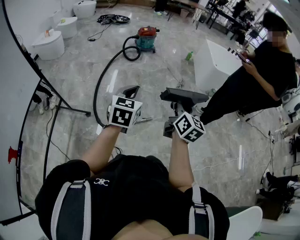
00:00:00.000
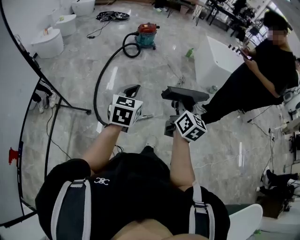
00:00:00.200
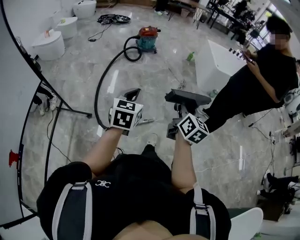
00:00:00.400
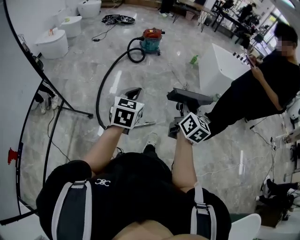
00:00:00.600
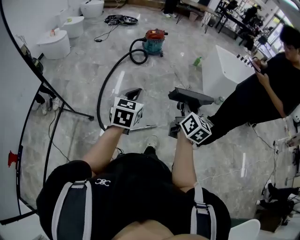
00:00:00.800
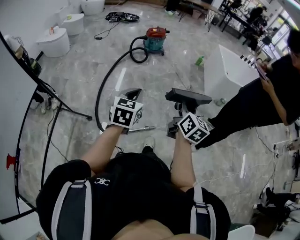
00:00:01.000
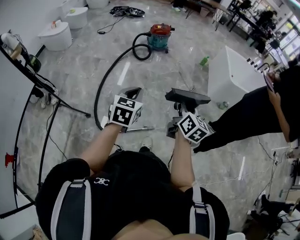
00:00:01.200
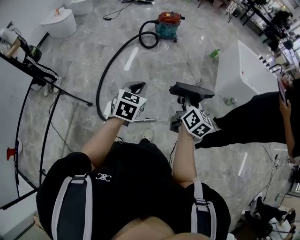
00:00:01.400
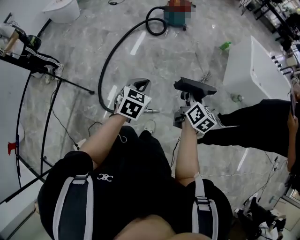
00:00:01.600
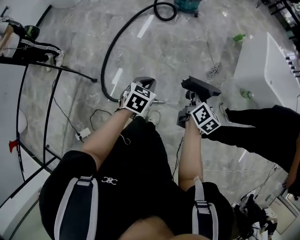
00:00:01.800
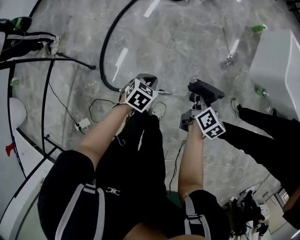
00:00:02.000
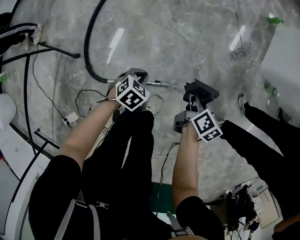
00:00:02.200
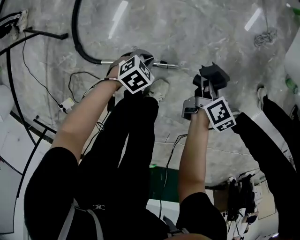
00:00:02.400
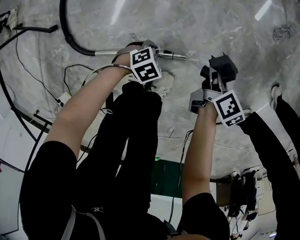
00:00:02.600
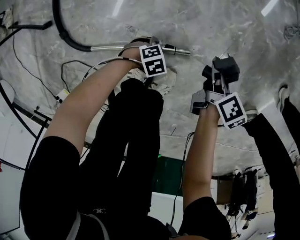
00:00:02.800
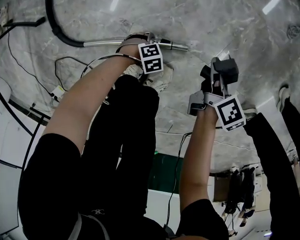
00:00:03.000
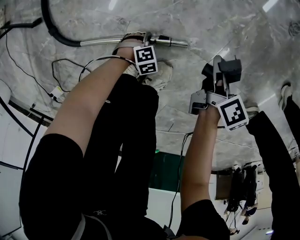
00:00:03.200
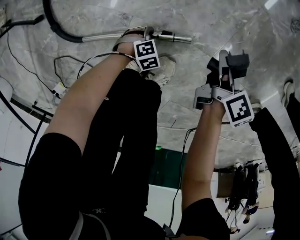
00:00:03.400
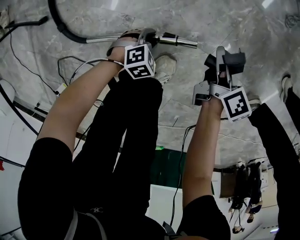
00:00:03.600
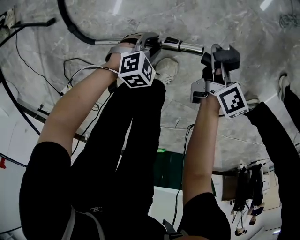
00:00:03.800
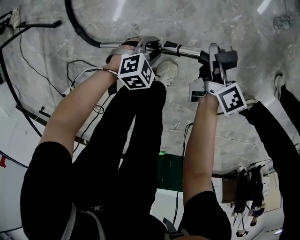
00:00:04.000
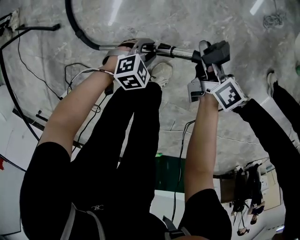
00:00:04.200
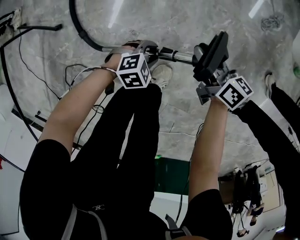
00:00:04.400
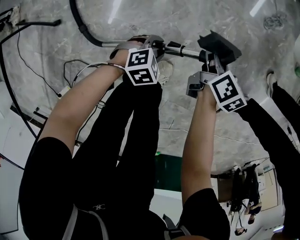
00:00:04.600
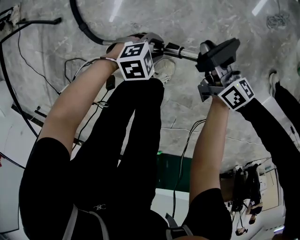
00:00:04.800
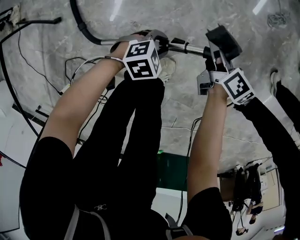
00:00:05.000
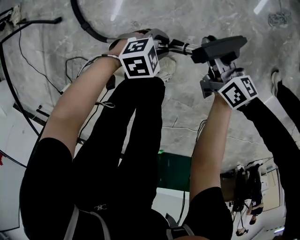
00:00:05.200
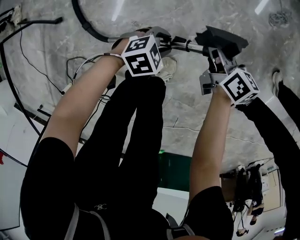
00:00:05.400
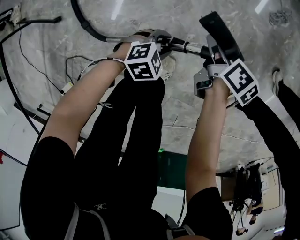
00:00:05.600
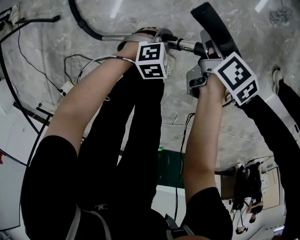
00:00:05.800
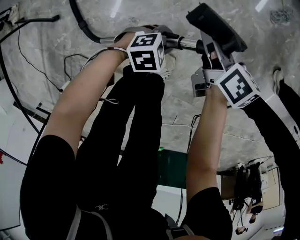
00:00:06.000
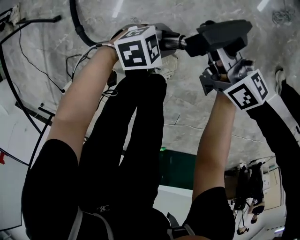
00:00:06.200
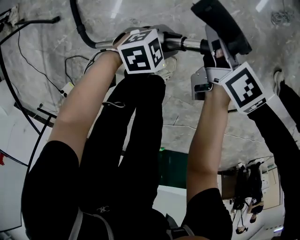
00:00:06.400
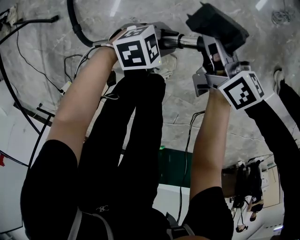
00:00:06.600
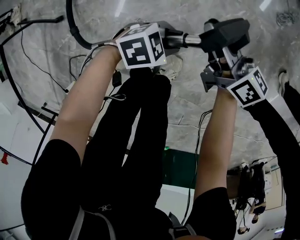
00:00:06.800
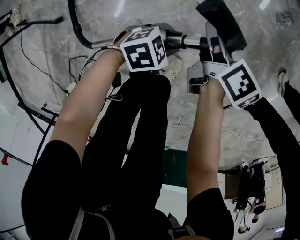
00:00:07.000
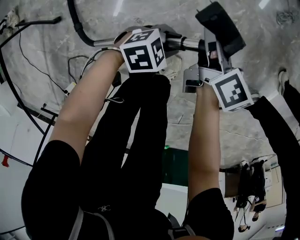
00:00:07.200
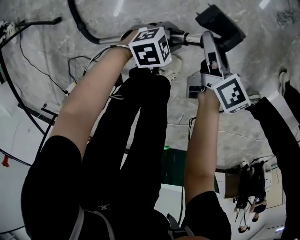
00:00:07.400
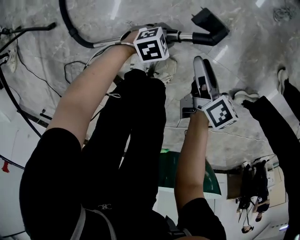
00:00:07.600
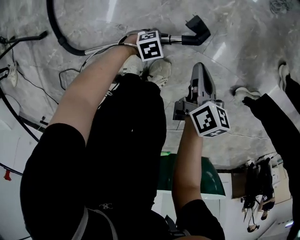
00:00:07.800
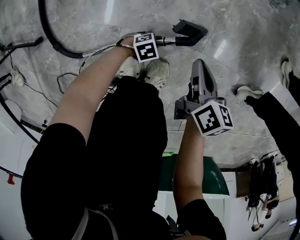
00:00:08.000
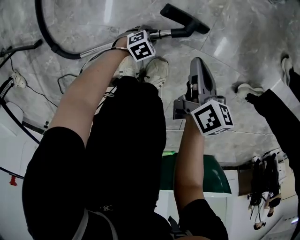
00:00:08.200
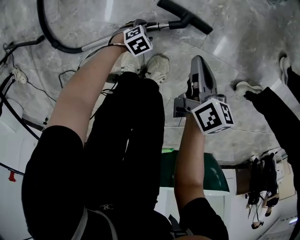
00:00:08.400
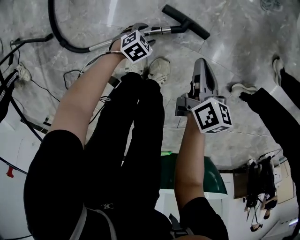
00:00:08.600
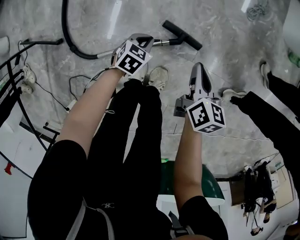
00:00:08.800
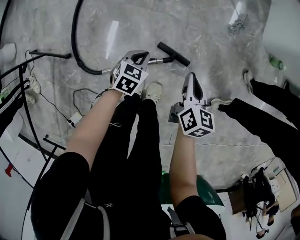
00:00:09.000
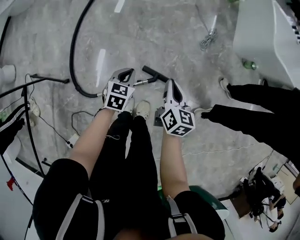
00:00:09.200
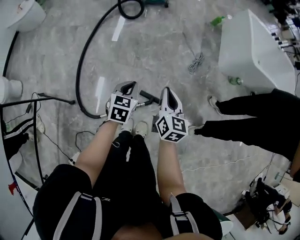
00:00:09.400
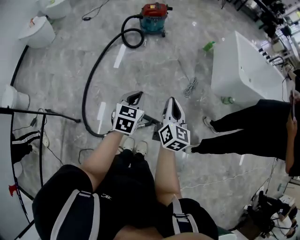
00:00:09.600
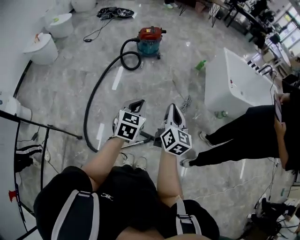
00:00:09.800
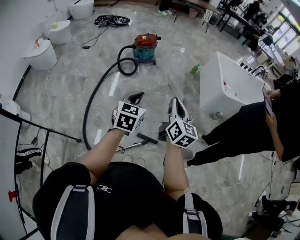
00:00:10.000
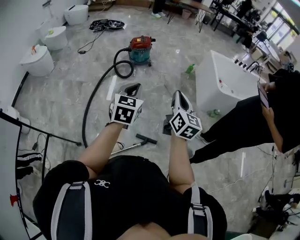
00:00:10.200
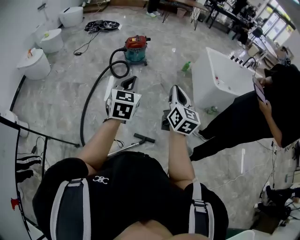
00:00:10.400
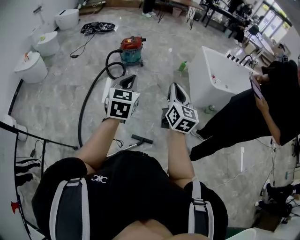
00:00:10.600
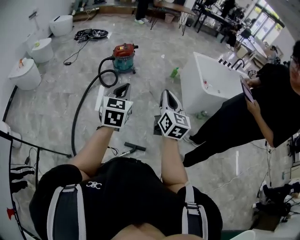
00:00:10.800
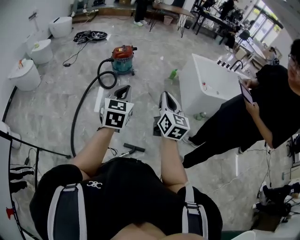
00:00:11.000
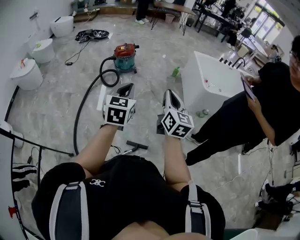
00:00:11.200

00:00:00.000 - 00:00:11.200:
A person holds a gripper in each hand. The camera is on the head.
00:00:00.000 - 00:00:01.600: The grippers both shift forward and downward by about 40 cm. The right gripper rotates approximately 20 degrees.
00:00:01.600 - 00:00:03.200: The grippers both shift downward by roughly 90 cm. The right gripper turns by about 40 degrees. Meanwhile the left gripper points its fingers roughly 50 degrees further downward, and opens up.
00:00:03.200 - 00:00:04.800: The right gripper heads upward, covering approximately 15 cm, and swivels about 40 degrees. The left gripper shifts approximately 30 cm upward, and changes its angle by roughly 30 degrees.
00:00:04.800 - 00:00:06.400: The left gripper moves roughly 5 cm. The right gripper goes up and down, some 10 cm each way, reversing 2 times, and rotates approximately 30 degrees.
00:00:06.400 - 00:00:08.000: The left gripper is displaced downward by approximately 25 cm, and rotates some 20 degrees; the right gripper ends up some 20 cm from where it was, and closes up.
00:00:08.000 - 00:00:09.600: The grippers both shift upward by roughly 80 cm. The right gripper swivels approximately 40 degrees; the left gripper changes its angle by about 70 degrees, and closes its fingers.
00:00:09.600 - 00:00:11.200: The right gripper heads upward and to the right, covering roughly 25 cm. Meanwhile the left gripper shifts about 25 cm upward.

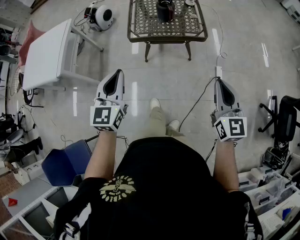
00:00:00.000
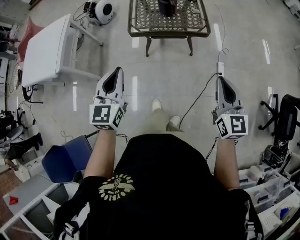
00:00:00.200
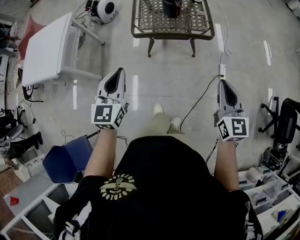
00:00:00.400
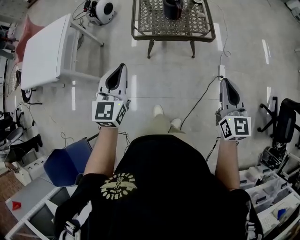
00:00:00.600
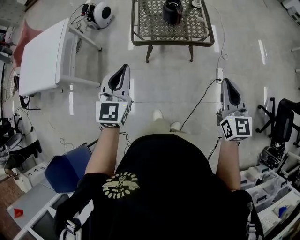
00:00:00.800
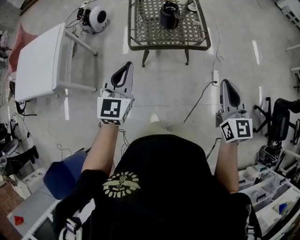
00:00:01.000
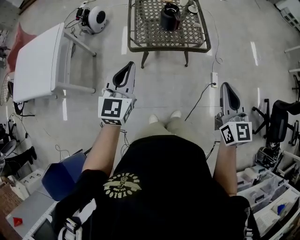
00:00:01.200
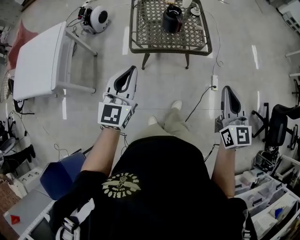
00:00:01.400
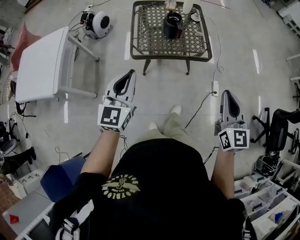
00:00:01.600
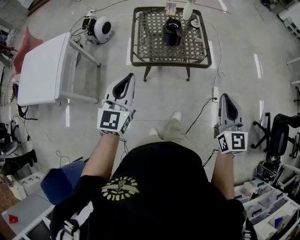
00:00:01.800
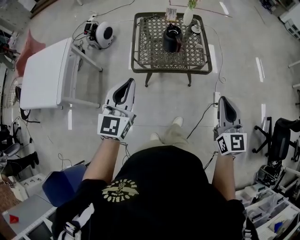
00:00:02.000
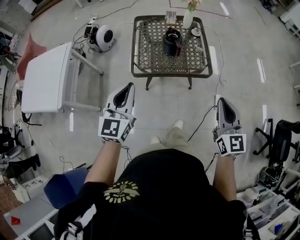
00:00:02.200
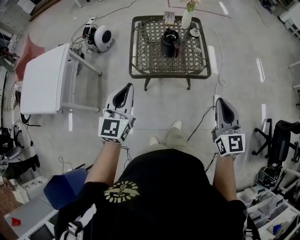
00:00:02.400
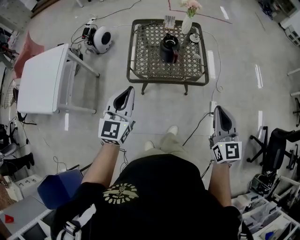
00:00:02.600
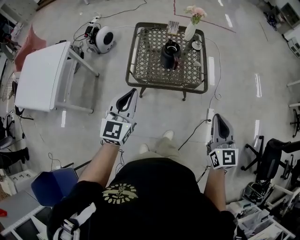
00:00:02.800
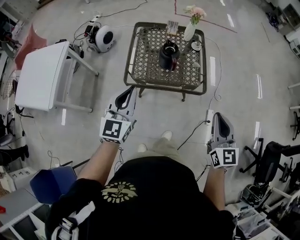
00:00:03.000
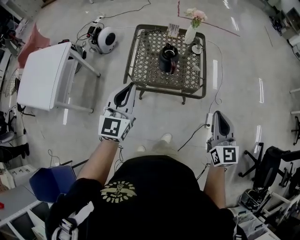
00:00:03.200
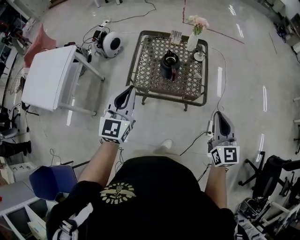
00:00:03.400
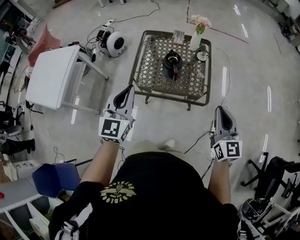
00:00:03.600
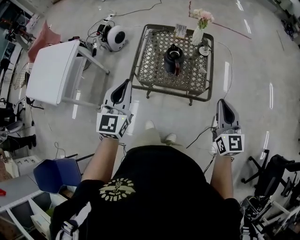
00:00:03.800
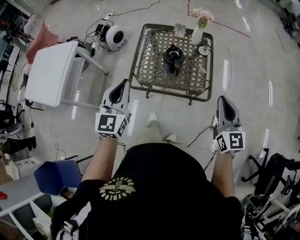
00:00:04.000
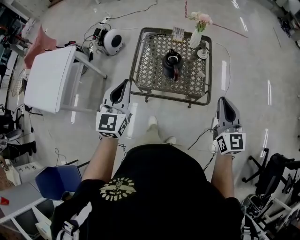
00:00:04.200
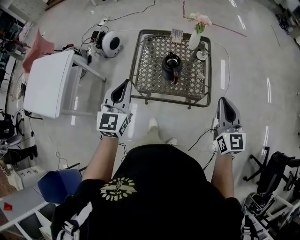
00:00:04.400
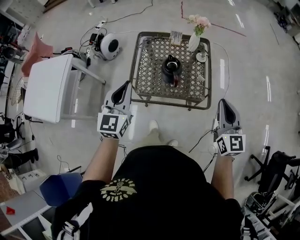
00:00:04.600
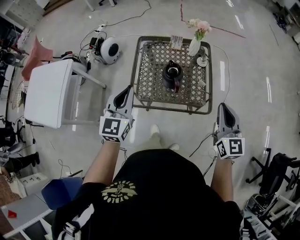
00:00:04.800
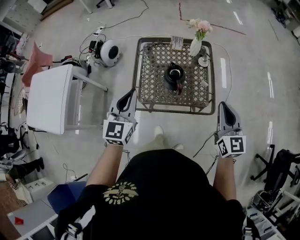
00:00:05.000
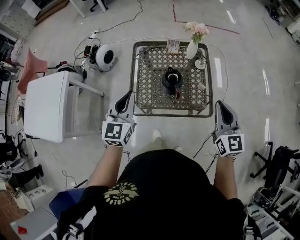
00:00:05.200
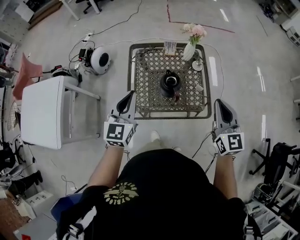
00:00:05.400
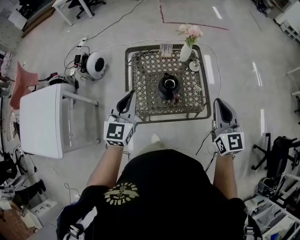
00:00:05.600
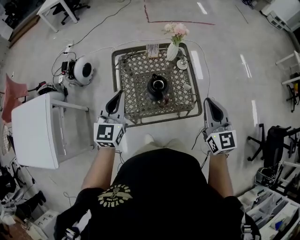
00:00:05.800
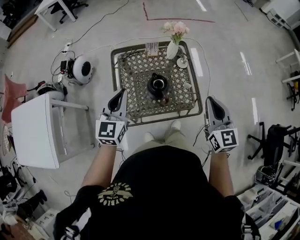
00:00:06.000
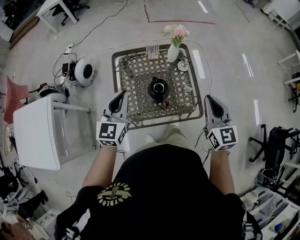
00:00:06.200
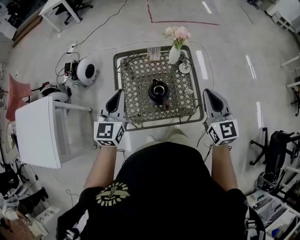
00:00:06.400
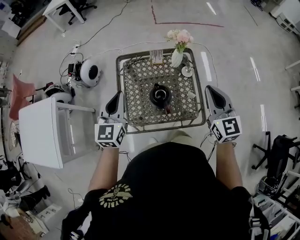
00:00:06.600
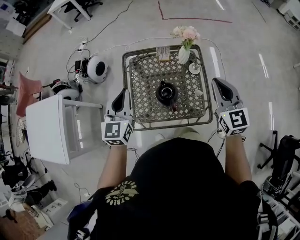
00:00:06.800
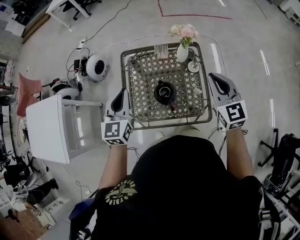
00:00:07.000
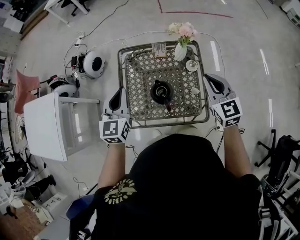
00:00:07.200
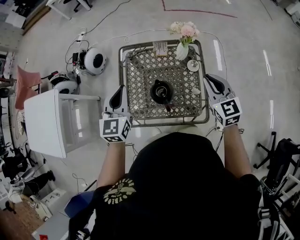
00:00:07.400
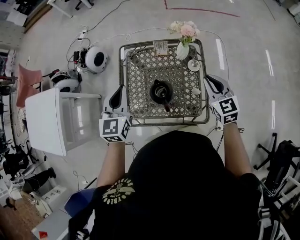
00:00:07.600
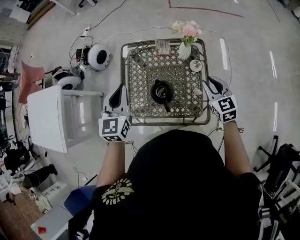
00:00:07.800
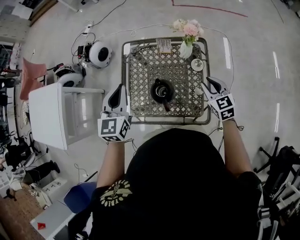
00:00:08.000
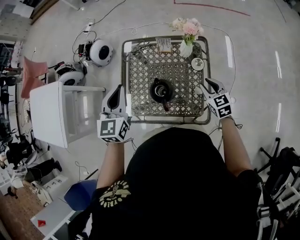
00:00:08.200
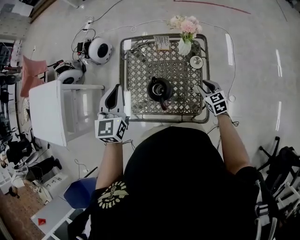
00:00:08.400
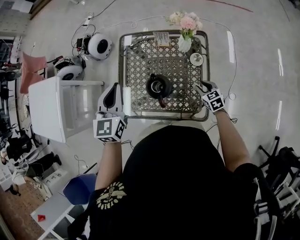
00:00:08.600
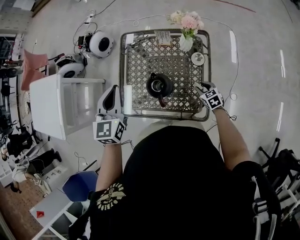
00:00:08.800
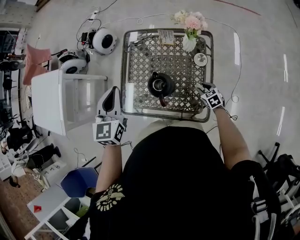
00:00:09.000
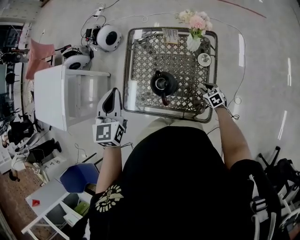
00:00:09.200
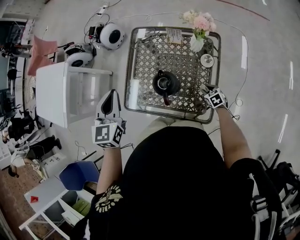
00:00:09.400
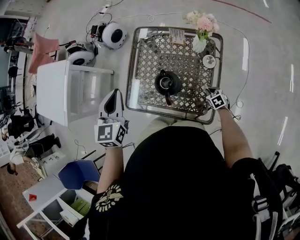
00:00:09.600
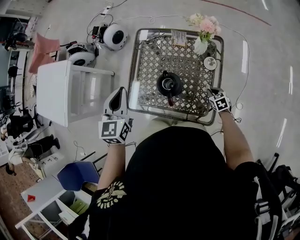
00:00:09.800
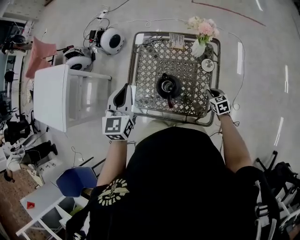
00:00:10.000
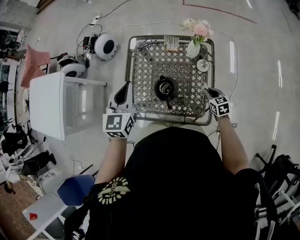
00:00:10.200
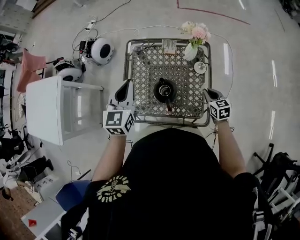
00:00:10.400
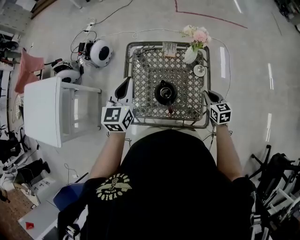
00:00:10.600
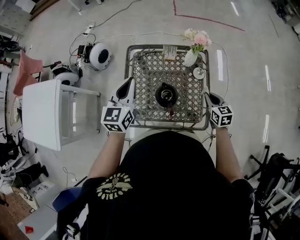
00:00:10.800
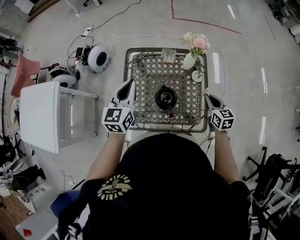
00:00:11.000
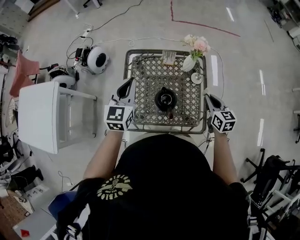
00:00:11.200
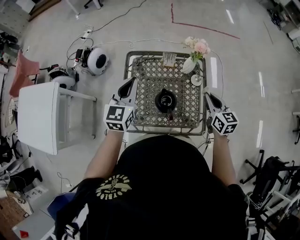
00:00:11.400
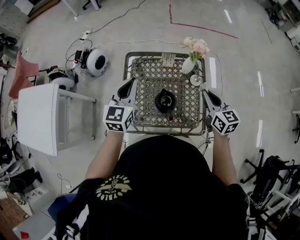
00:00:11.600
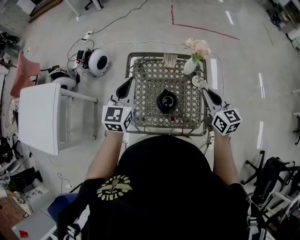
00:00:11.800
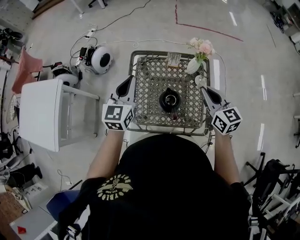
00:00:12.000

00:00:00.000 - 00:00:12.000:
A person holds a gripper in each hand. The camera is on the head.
00:00:00.000 - 00:00:01.600: Both grippers move forward, about 15 cm.
00:00:01.600 - 00:00:03.000: Both grippers travel together forward and to the right, about 15 cm.
00:00:03.000 - 00:00:04.400: Both grippers move forward, about 15 cm.
00:00:04.400 - 00:00:06.000: The left gripper shifts roughly 15 cm forward. Meanwhile the right gripper travels forward by approximately 10 cm.
00:00:06.000 - 00:00:07.600: The left gripper travels forward by roughly 10 cm, while the right gripper goes roughly 20 cm forward and downward, and rotates some 20 degrees.
00:00:07.600 - 00:00:09.000: The right gripper travels downward by roughly 30 cm, changes its angle by about 30 degrees, and opens its fingers.
00:00:09.000 - 00:00:10.400: The right gripper heads upward, covering some 15 cm, swivels roughly 20 degrees, and closes up.
00:00:10.400 - 00:00:12.000: The right gripper is displaced upward and to the left by roughly 25 cm, and swivels about 20 degrees; the left gripper ends up some 5 cm from where it was.
